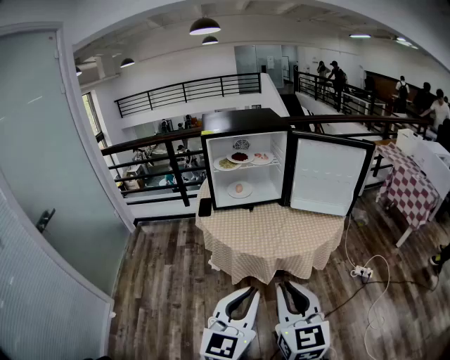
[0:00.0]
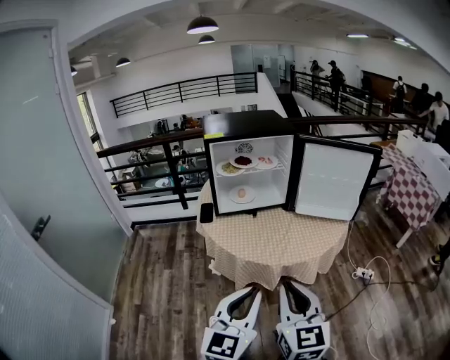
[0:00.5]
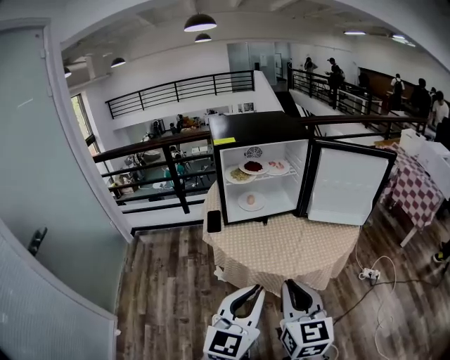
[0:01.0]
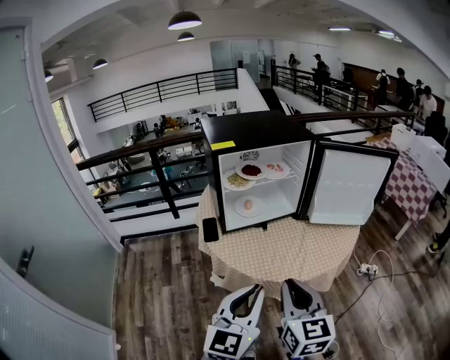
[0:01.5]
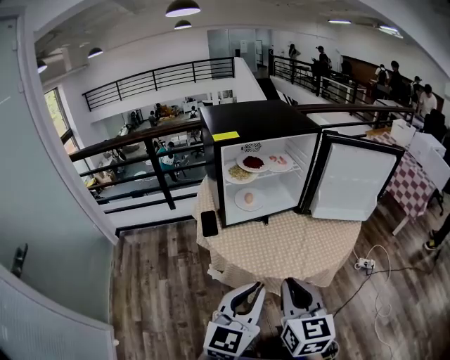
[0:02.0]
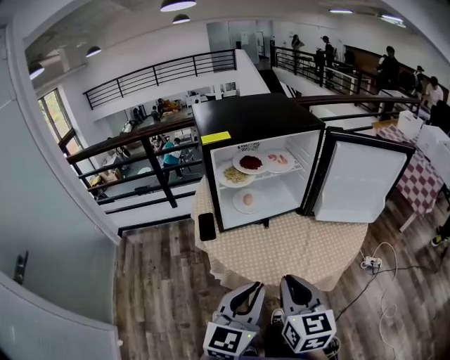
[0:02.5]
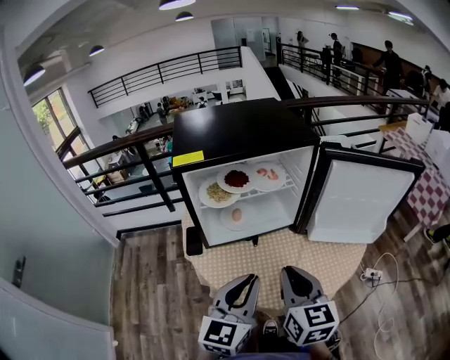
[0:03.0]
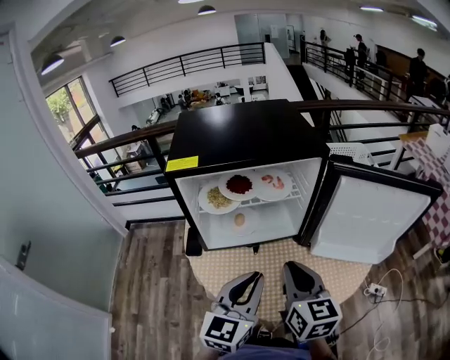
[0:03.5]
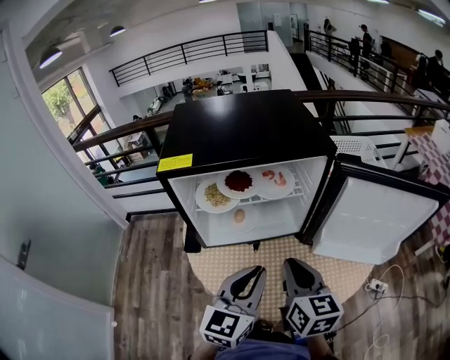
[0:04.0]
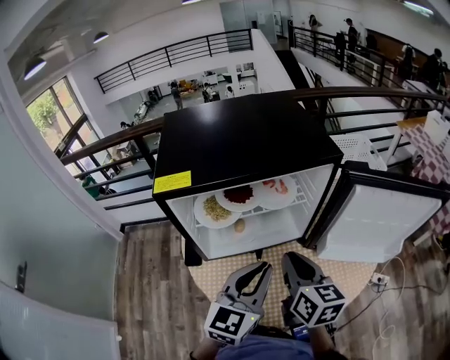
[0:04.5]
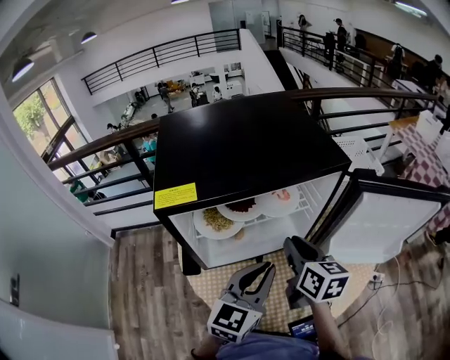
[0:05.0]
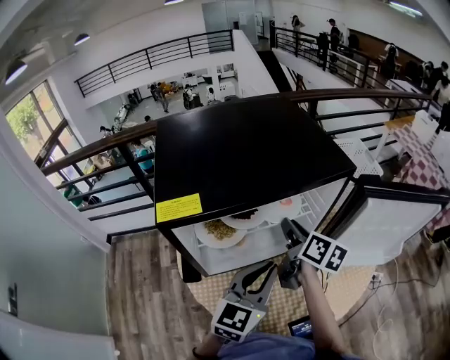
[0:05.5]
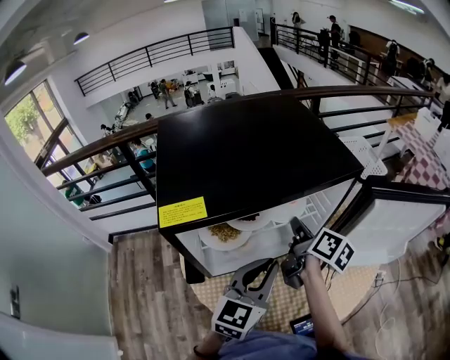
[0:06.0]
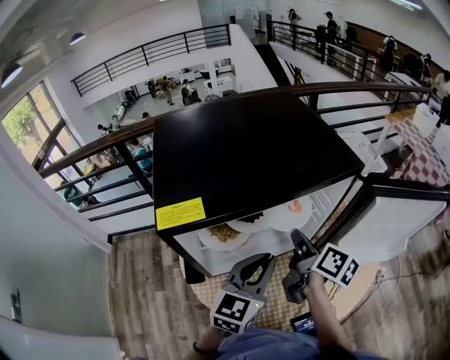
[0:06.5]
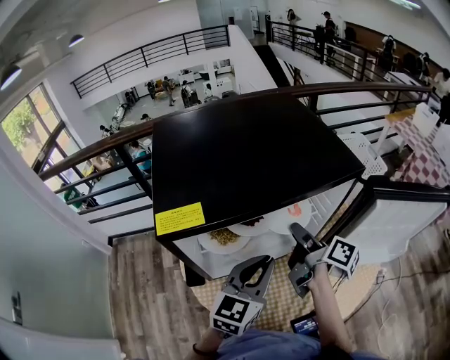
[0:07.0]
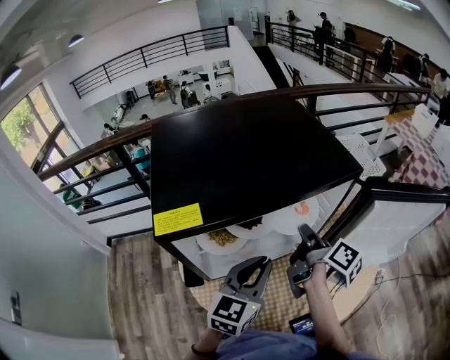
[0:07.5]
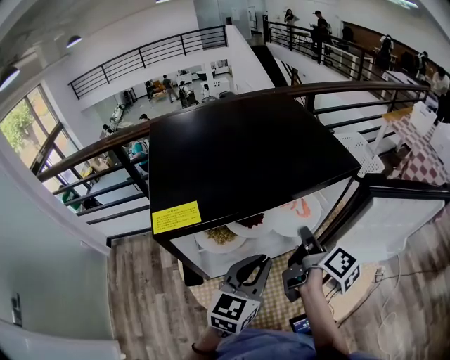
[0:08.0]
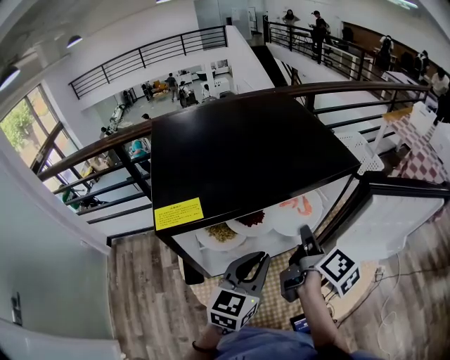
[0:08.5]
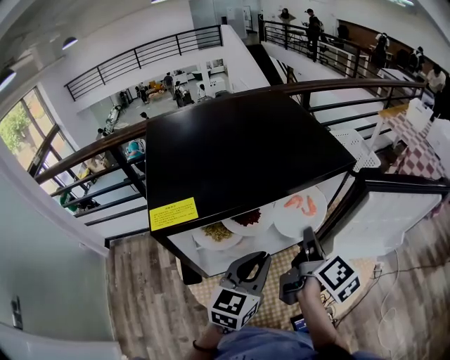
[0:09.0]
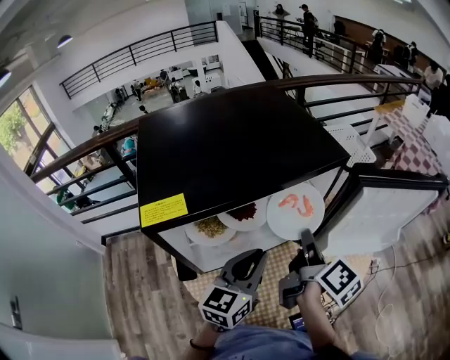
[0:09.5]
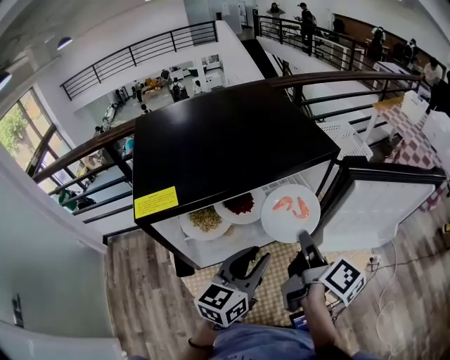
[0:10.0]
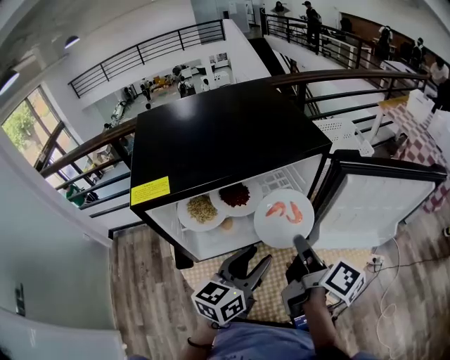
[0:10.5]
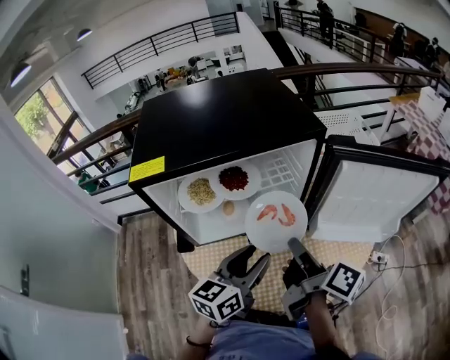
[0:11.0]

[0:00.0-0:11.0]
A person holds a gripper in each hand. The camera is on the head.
0:00.0 to 0:02.0: Both grippers travel together forward and to the left, approximately 25 cm.
0:02.0 to 0:03.5: The left gripper is displaced forward and to the right by about 25 cm, while the right gripper shifts some 25 cm forward.
0:03.5 to 0:05.5: The left gripper is displaced forward by some 15 cm; the right gripper moves forward, about 25 cm, and swivels some 40 degrees.
0:05.5 to 0:07.5: The right gripper turns by roughly 30 degrees, and closes.
0:07.5 to 0:09.0: The right gripper ends up some 5 cm from where it was.
0:09.0 to 0:11.0: The right gripper goes approximately 10 cm backward, and swivels some 30 degrees, while the left gripper is displaced backward and to the right by about 10 cm, and opens.

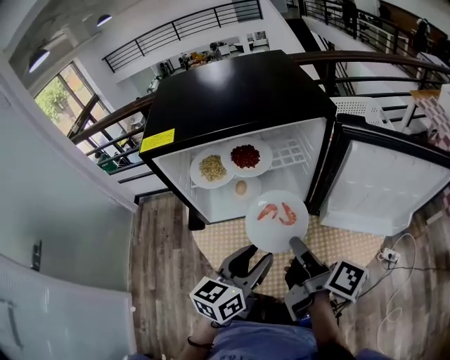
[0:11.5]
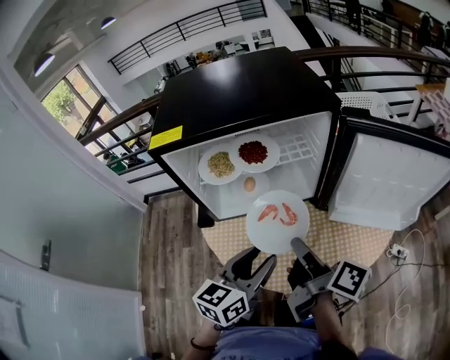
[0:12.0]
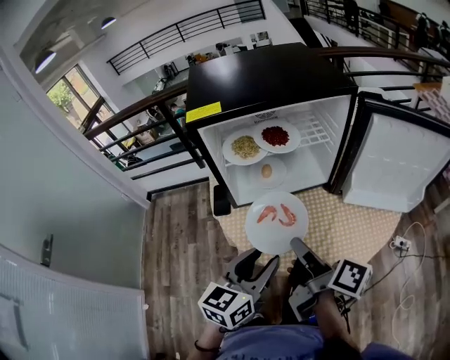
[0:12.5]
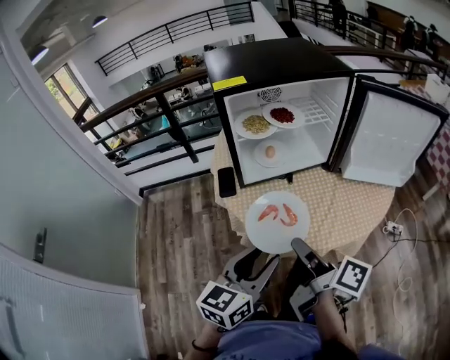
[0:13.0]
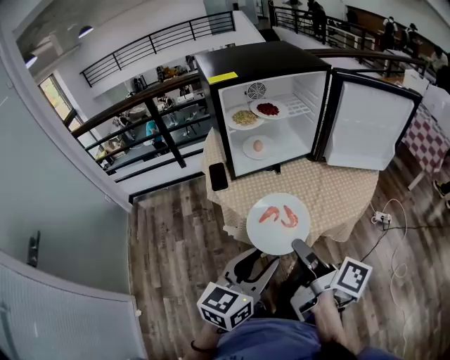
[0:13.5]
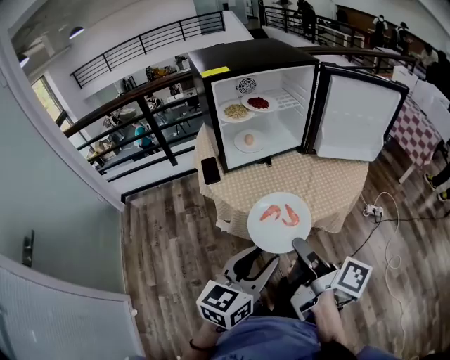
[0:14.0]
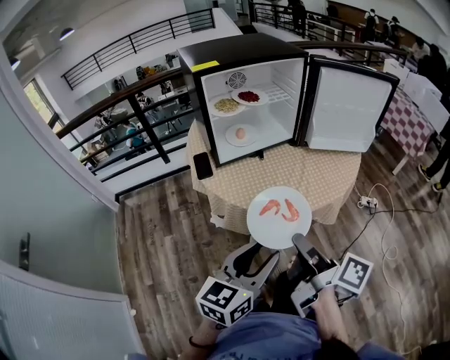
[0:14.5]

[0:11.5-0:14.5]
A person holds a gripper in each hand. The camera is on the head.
0:11.5 to 0:13.0: Both grippers move backward and to the left, approximately 25 cm.
0:13.0 to 0:14.5: Both grippers travel together backward, roughly 15 cm.

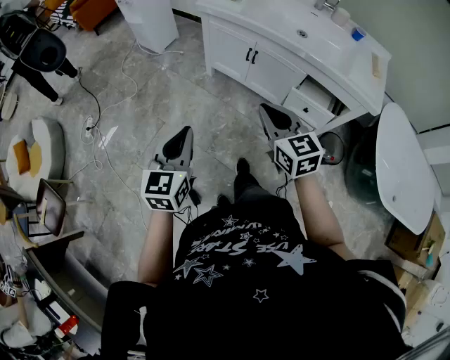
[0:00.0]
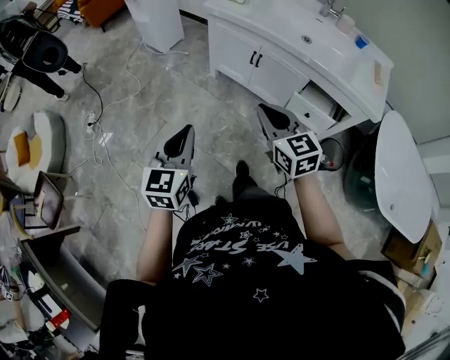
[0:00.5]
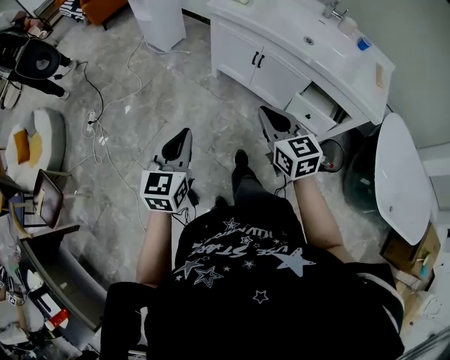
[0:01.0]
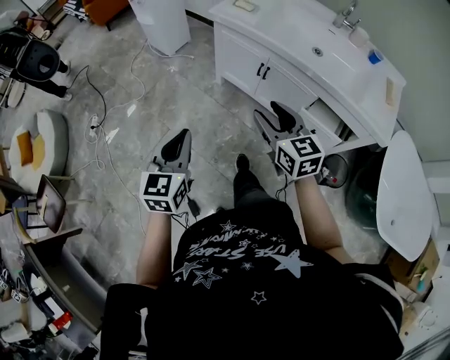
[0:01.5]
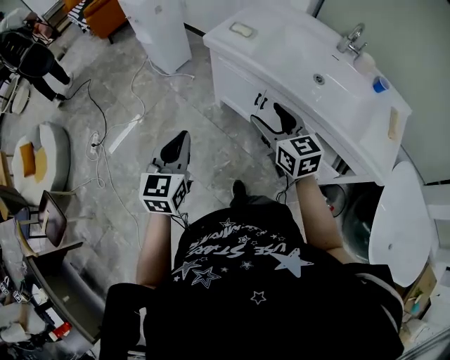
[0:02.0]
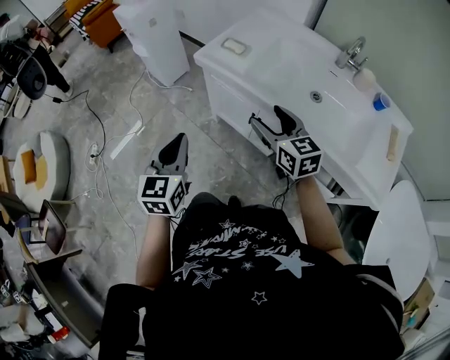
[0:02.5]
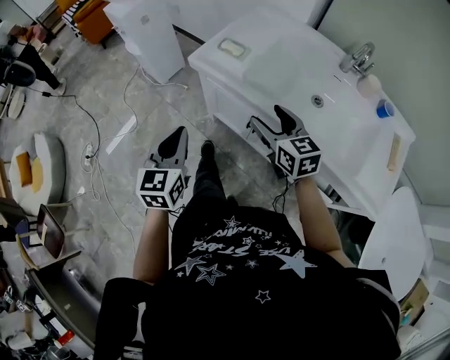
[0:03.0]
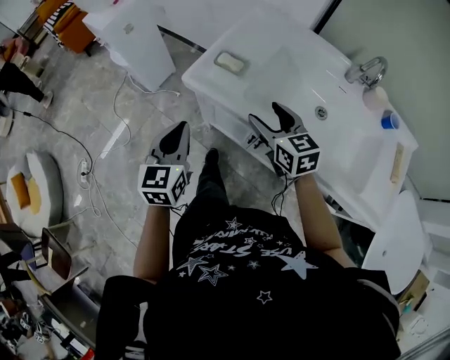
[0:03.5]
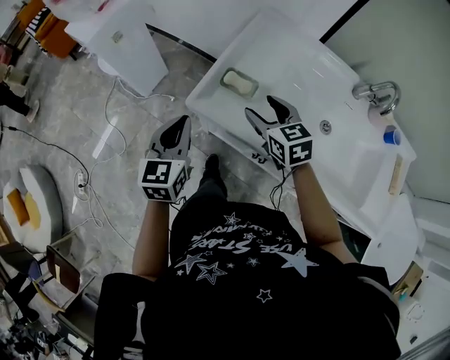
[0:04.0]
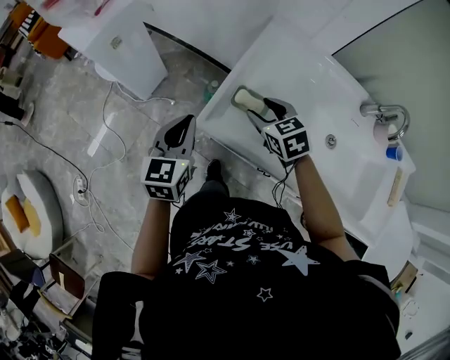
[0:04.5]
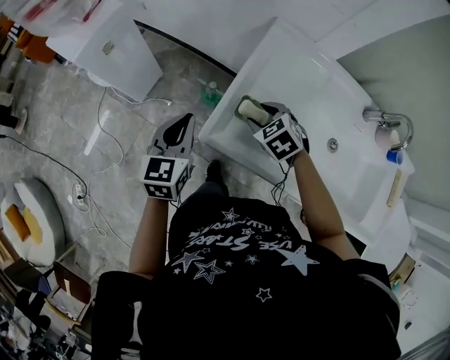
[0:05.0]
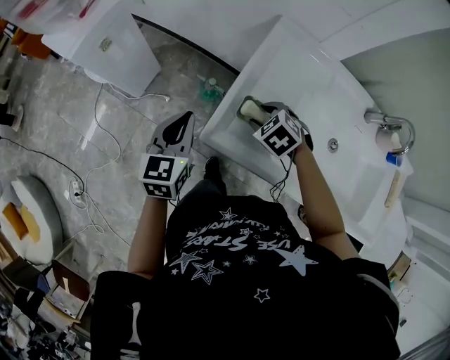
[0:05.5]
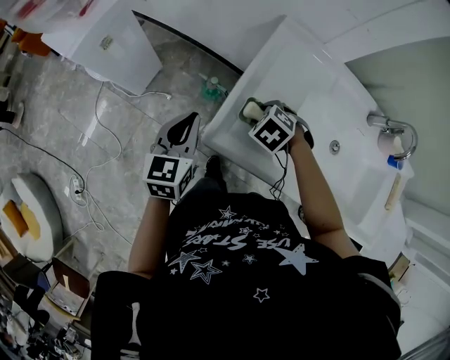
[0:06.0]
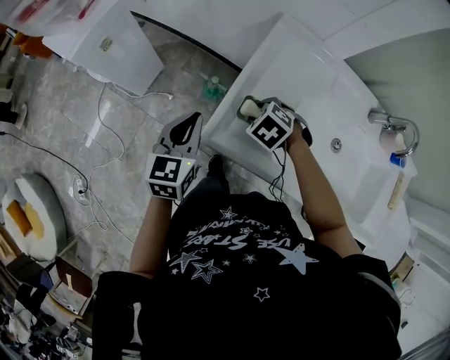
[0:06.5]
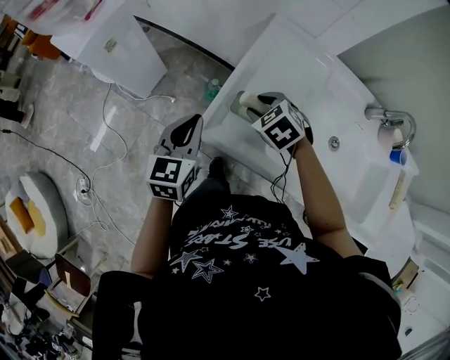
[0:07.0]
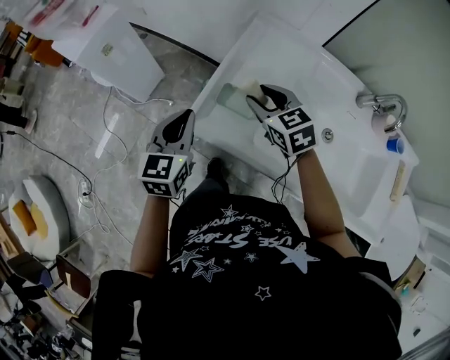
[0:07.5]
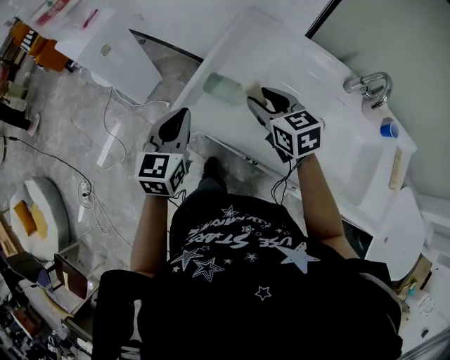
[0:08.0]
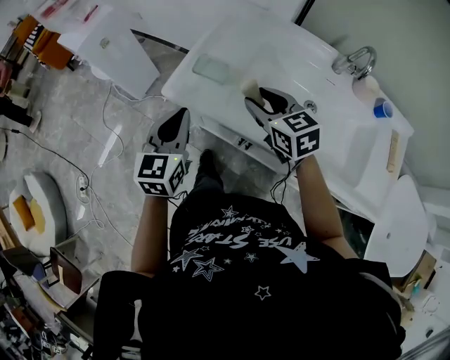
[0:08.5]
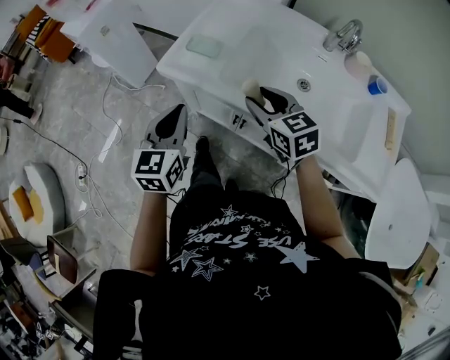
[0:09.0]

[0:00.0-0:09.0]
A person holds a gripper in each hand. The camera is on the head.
0:00.0 to 0:02.0: Both grippers travel together forward, roughly 25 cm. The right gripper opens its fingers.
0:02.0 to 0:04.5: The pair of grippers is taken forward, about 50 cm. The right gripper swivels roughly 30 degrees.
0:04.5 to 0:07.0: The right gripper travels downward and back again, approximately 10 cm each way, and changes its angle by some 20 degrees.
0:07.0 to 0:09.0: The right gripper moves backward and to the right, approximately 30 cm, and tips its fingers upward by approximately 30 degrees. The left gripper moves backward, roughly 25 cm.

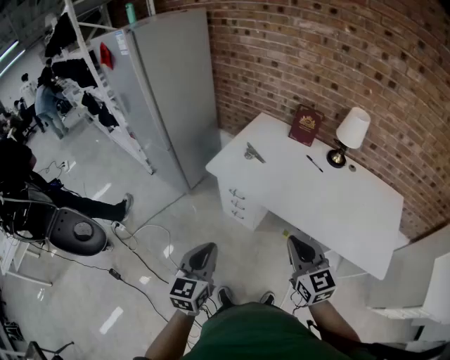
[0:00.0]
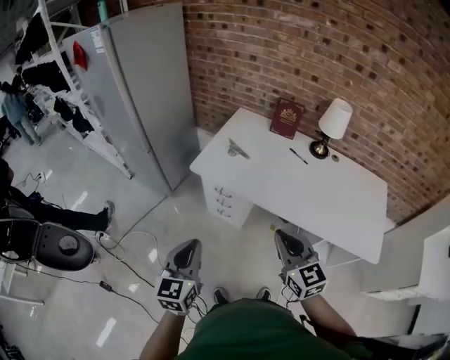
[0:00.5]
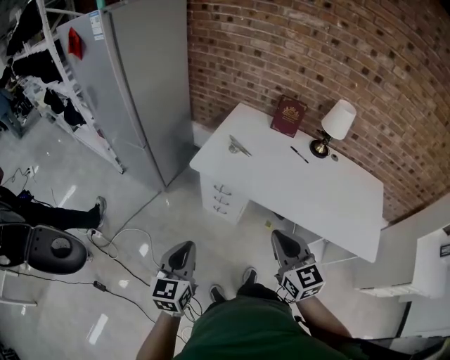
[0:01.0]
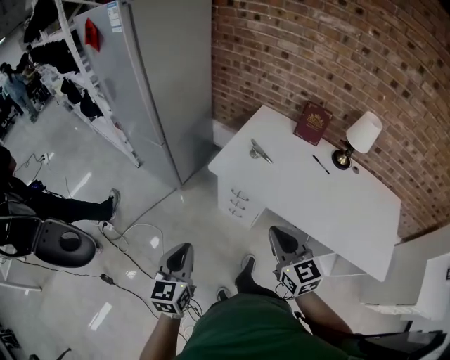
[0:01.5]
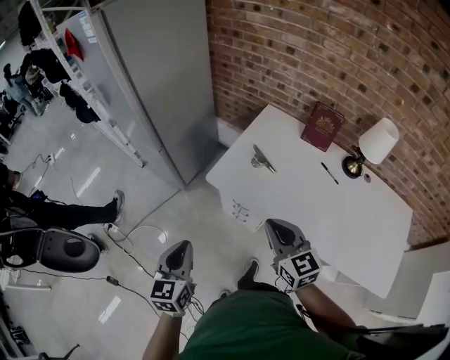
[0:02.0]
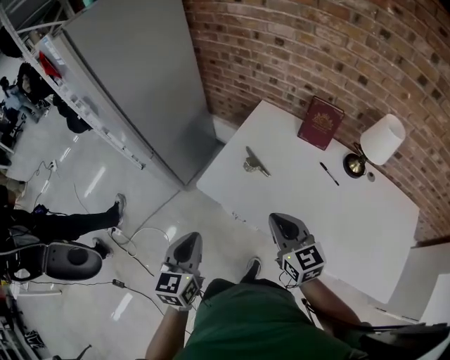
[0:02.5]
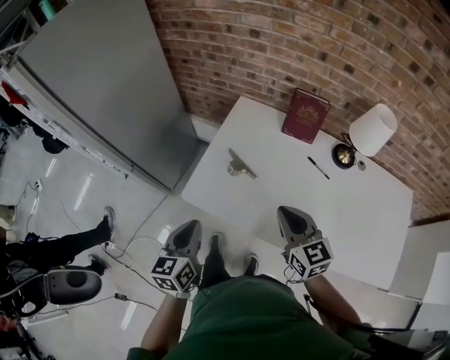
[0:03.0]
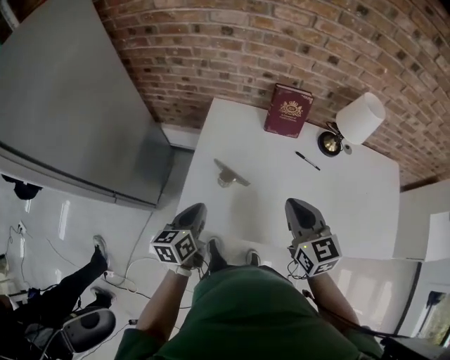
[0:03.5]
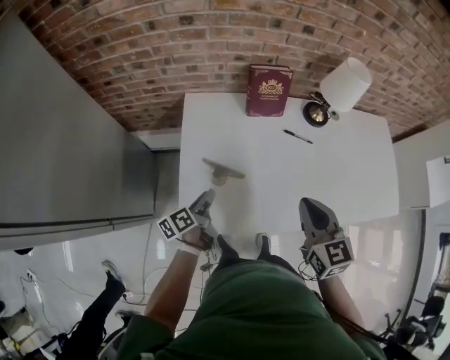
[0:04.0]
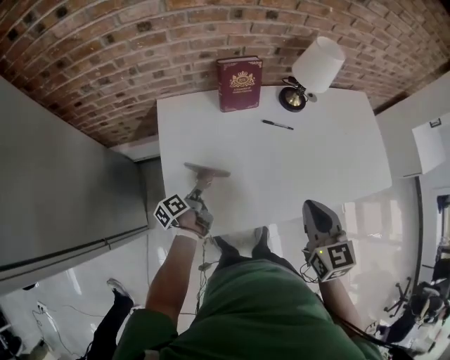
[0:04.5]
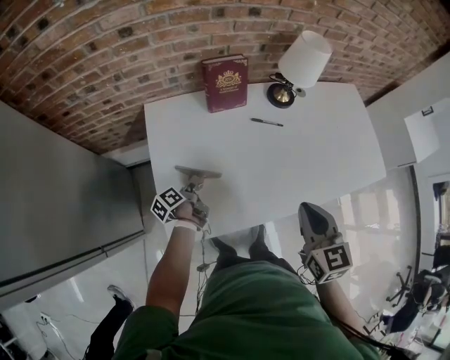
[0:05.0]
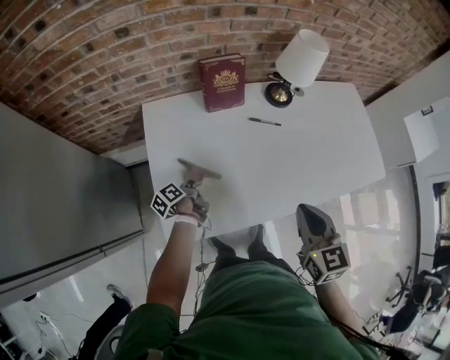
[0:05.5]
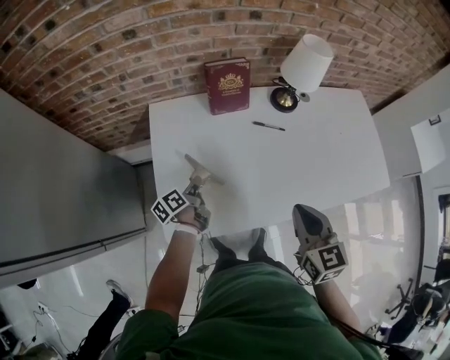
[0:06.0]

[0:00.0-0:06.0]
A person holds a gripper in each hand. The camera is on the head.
0:00.0 to 0:02.0: The grippers both shift forward and to the left by about 25 cm.
0:02.0 to 0:04.0: The left gripper changes place by roughly 50 cm, turns by roughly 70 degrees, and opens its fingers; the right gripper shifts by about 20 cm, and rotates approximately 50 degrees.
0:04.0 to 0:06.0: The left gripper goes roughly 5 cm forward, and closes up, while the right gripper goes about 5 cm to the right.
